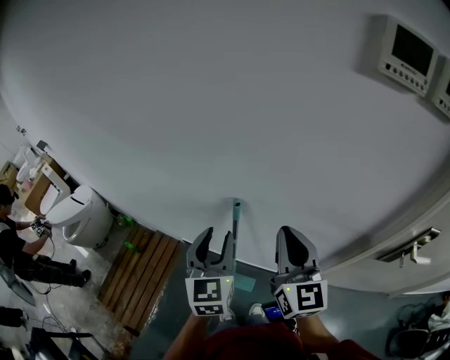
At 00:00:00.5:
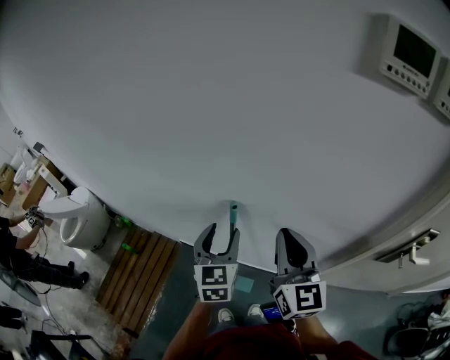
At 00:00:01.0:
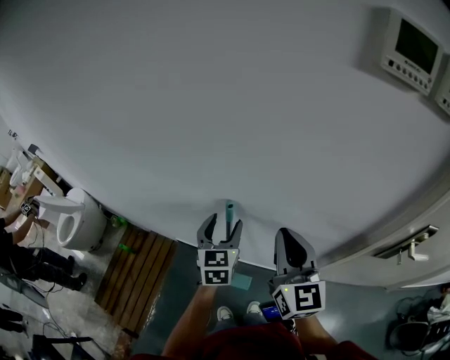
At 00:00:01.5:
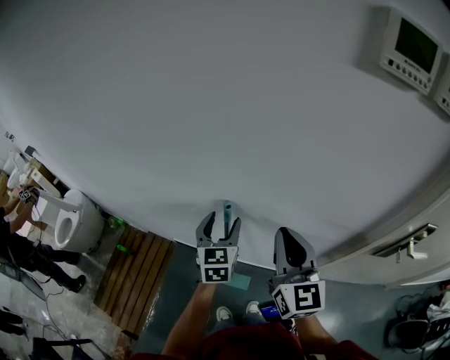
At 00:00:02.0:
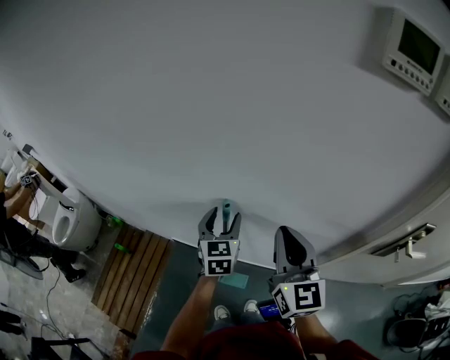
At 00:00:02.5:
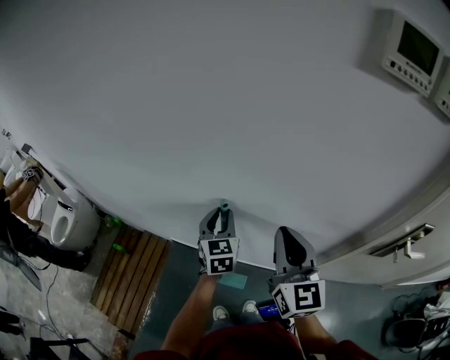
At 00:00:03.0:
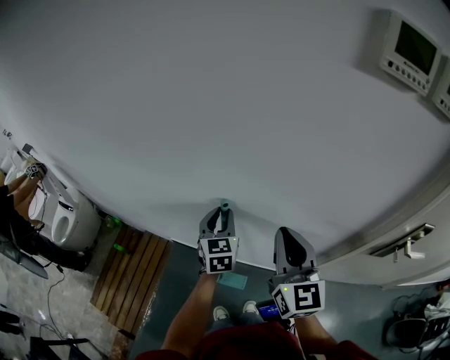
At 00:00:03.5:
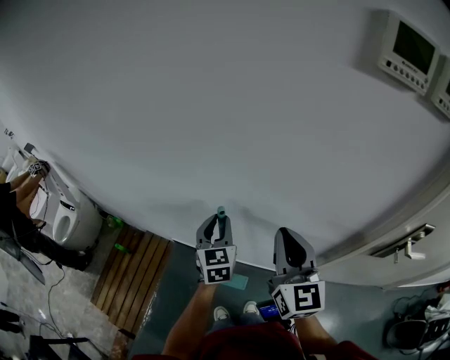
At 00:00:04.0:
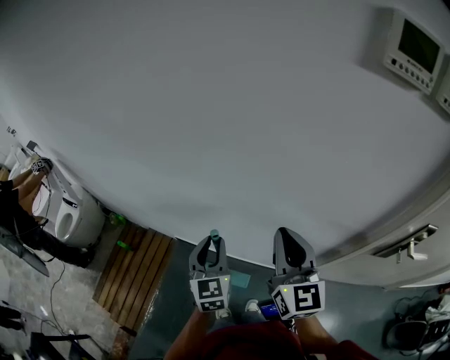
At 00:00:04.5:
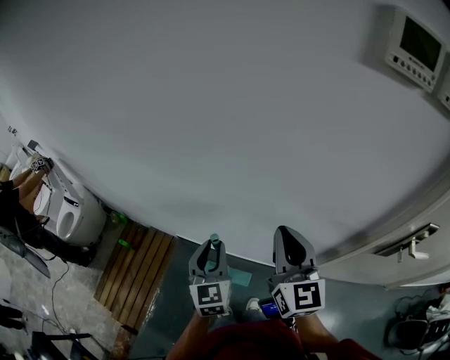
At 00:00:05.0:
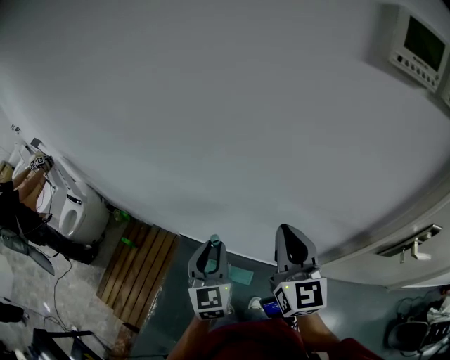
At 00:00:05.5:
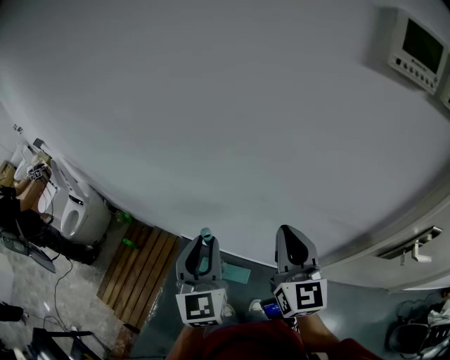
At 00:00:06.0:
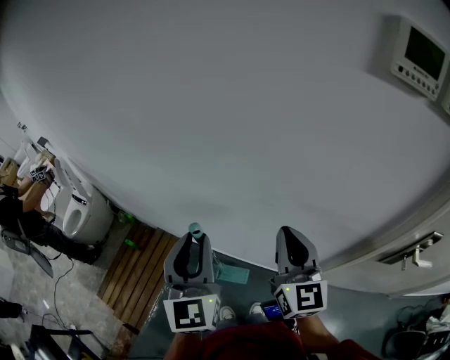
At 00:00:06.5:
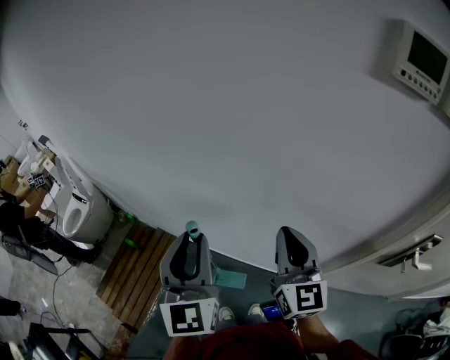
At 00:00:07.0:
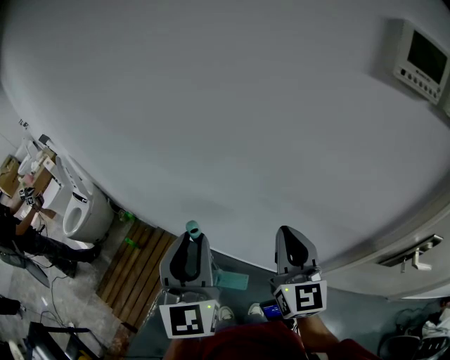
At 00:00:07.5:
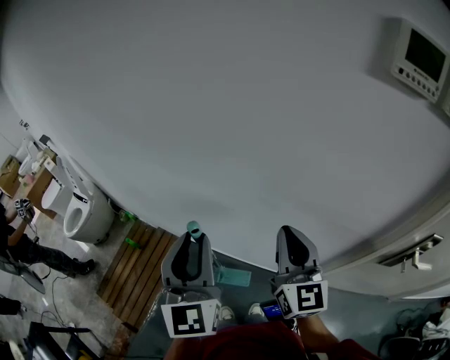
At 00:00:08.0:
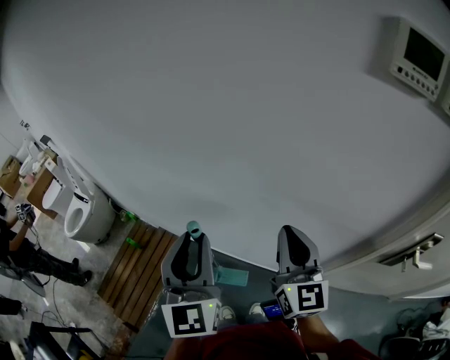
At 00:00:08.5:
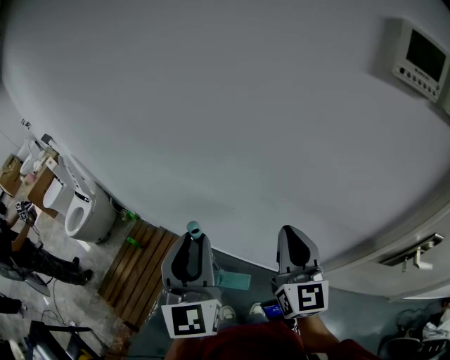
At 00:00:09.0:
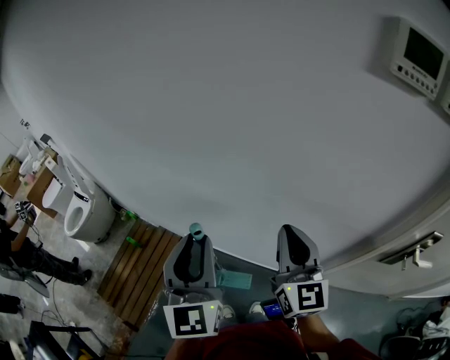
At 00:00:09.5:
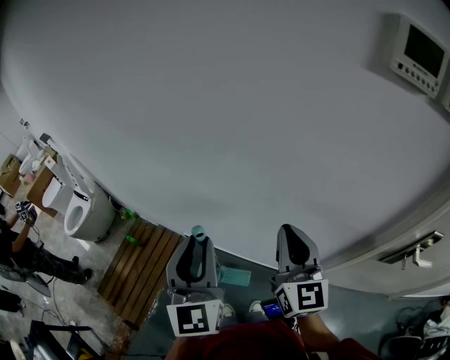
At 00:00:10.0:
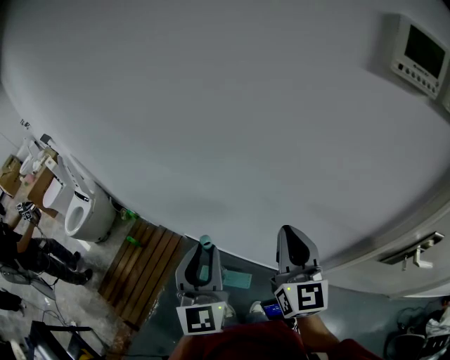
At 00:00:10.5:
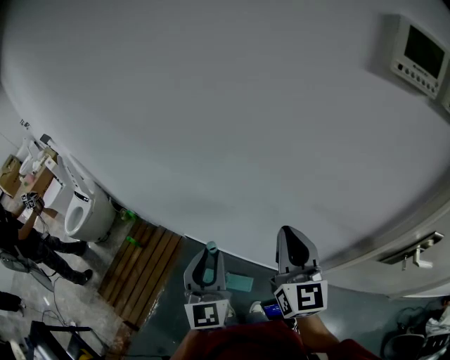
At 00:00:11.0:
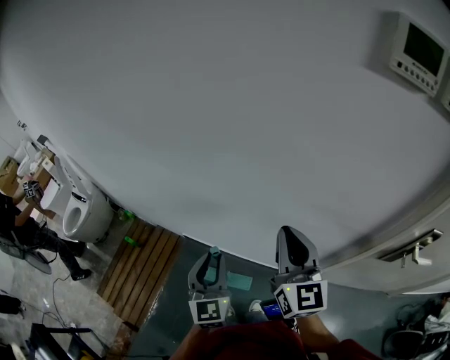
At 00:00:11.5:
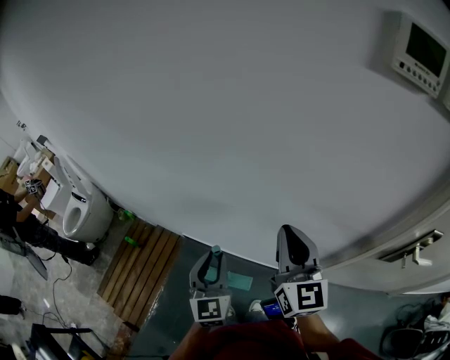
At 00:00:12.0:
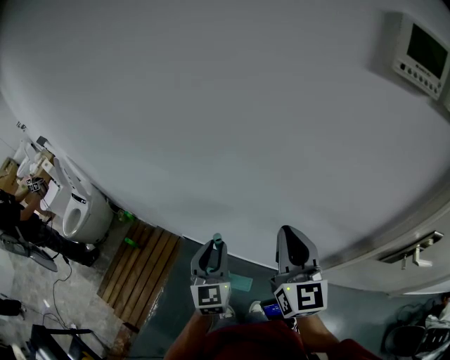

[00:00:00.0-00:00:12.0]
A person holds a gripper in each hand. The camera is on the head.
00:00:00.0 to 00:00:02.0: The left gripper moves forward and downward, some 15 cm, and opens.
00:00:02.0 to 00:00:04.0: The left gripper is displaced backward by approximately 10 cm, and closes up.
00:00:04.0 to 00:00:06.0: The left gripper shifts some 15 cm upward.
00:00:06.0 to 00:00:08.0: The grippers move only a little.
00:00:08.0 to 00:00:10.0: The left gripper heads downward, covering about 5 cm.
00:00:10.0 to 00:00:12.0: The left gripper travels downward and forward by roughly 15 cm.

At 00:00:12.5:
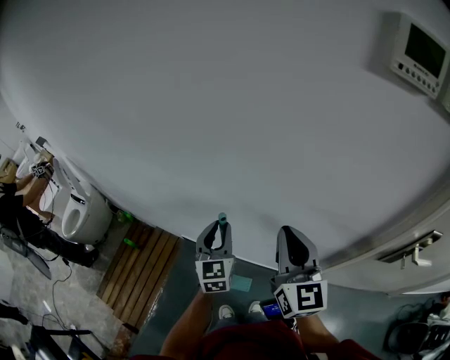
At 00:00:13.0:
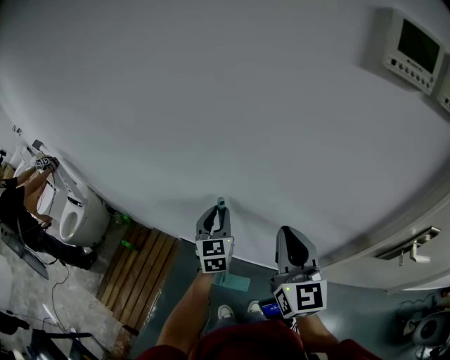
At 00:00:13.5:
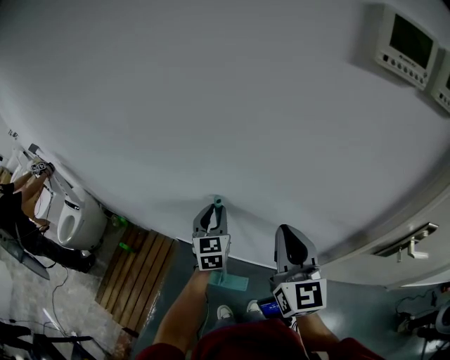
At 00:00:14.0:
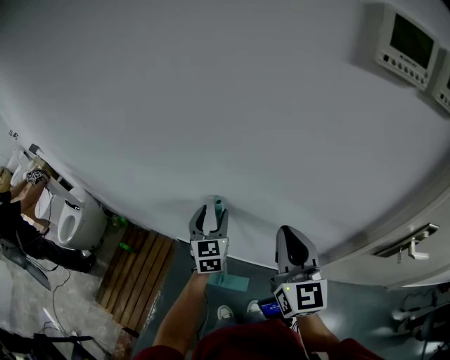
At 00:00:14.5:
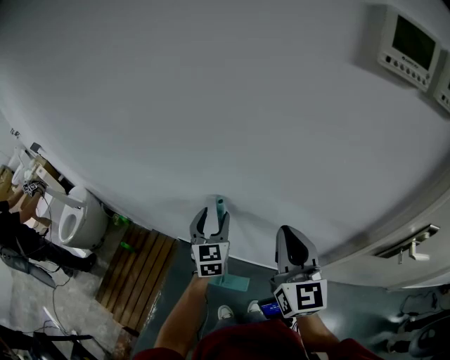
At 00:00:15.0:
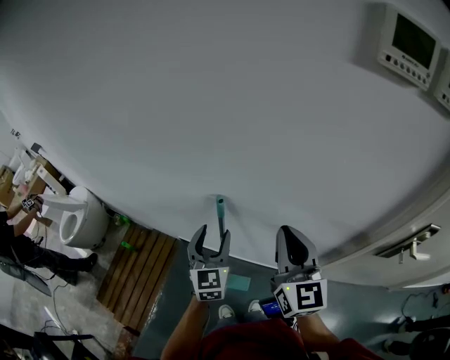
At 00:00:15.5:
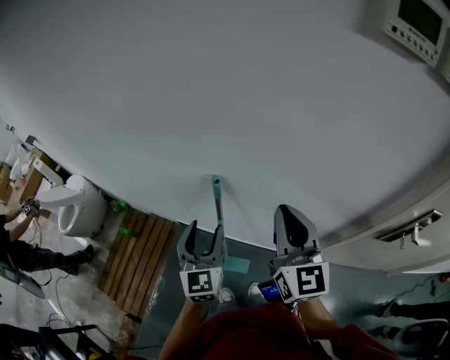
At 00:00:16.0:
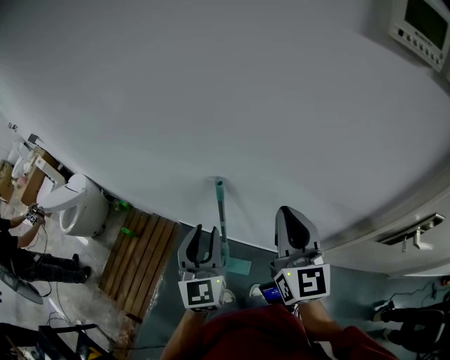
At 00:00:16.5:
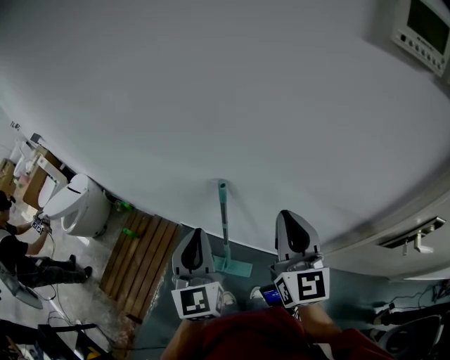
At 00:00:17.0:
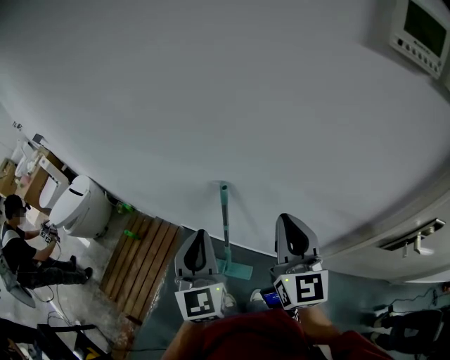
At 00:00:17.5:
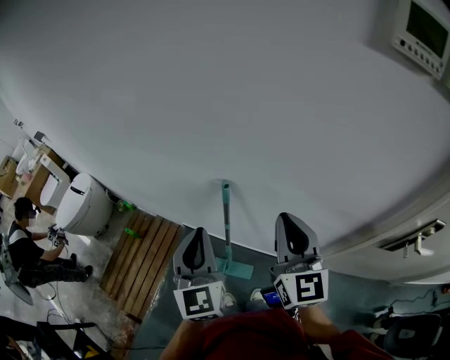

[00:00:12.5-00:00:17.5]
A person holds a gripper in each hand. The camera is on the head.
00:00:12.5 to 00:00:15.0: The left gripper goes forward and returns, about 5 cm each way, and opens its fingers.
00:00:15.0 to 00:00:17.5: The left gripper travels upward and backward by some 10 cm, and closes up.

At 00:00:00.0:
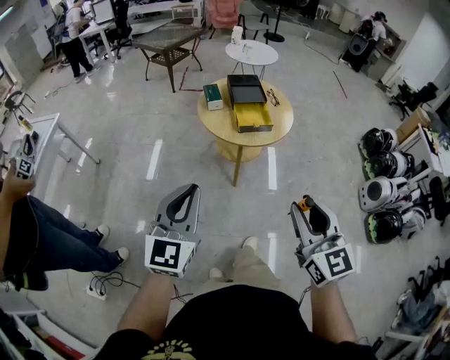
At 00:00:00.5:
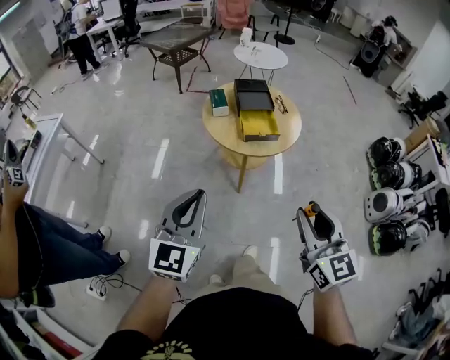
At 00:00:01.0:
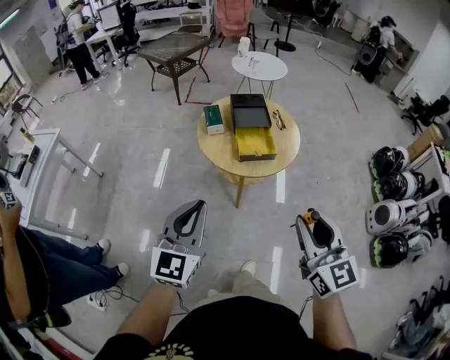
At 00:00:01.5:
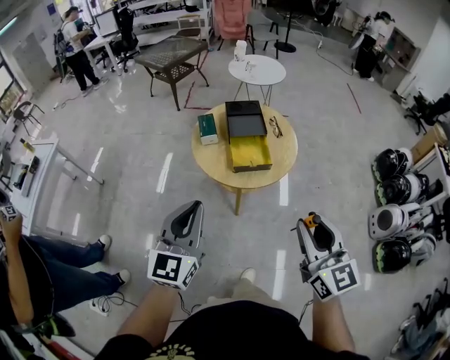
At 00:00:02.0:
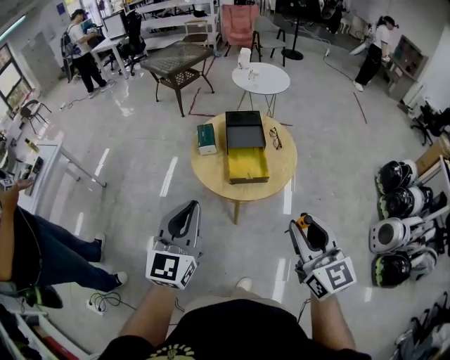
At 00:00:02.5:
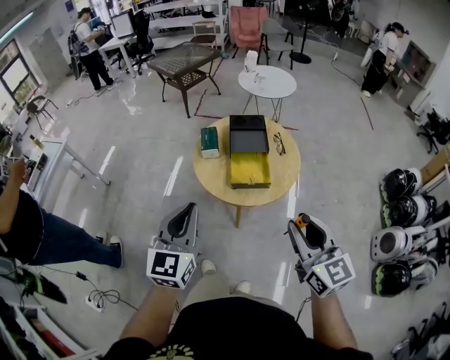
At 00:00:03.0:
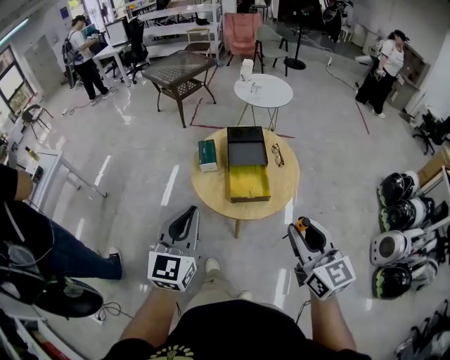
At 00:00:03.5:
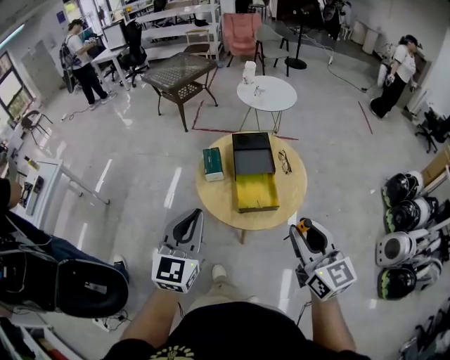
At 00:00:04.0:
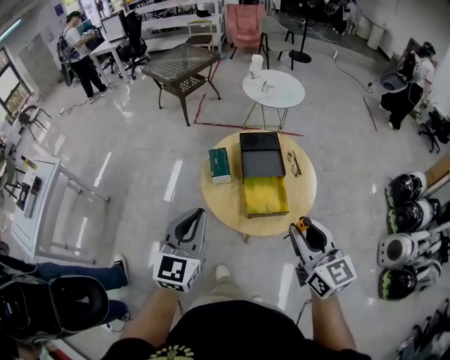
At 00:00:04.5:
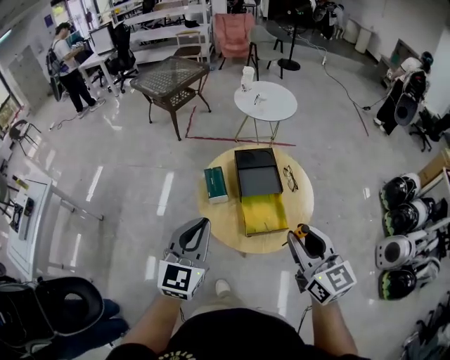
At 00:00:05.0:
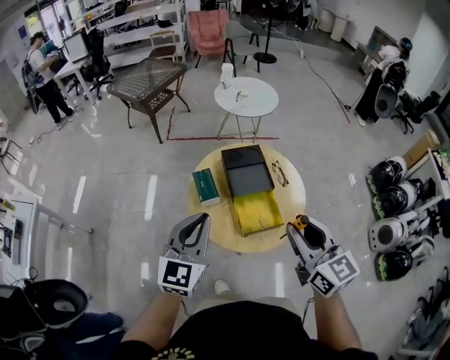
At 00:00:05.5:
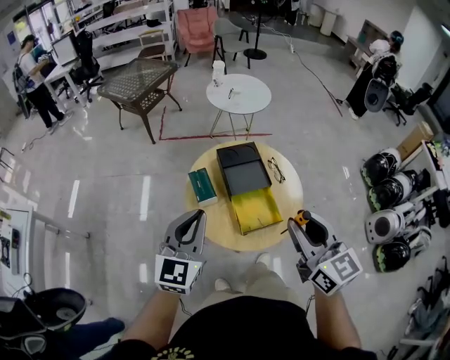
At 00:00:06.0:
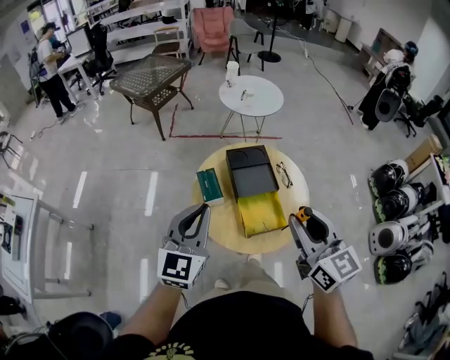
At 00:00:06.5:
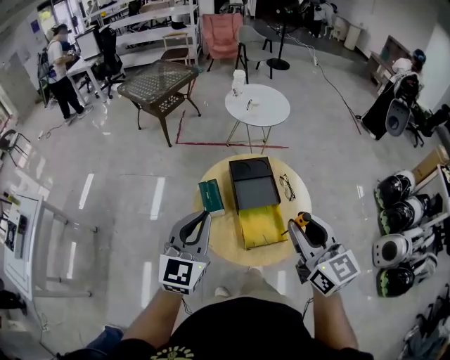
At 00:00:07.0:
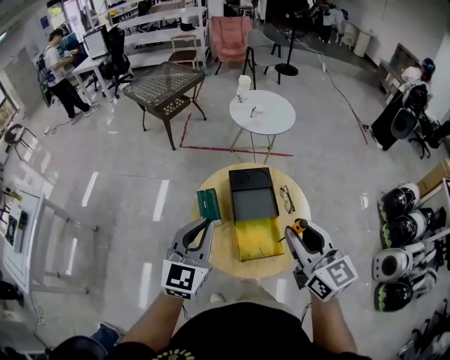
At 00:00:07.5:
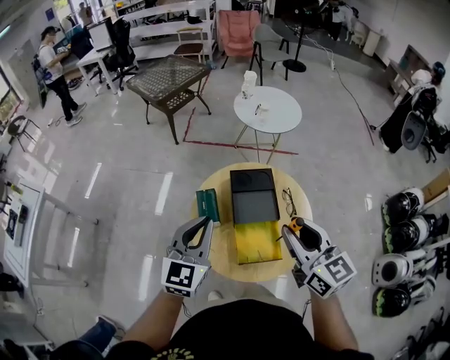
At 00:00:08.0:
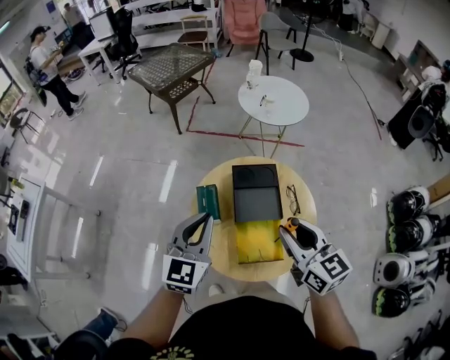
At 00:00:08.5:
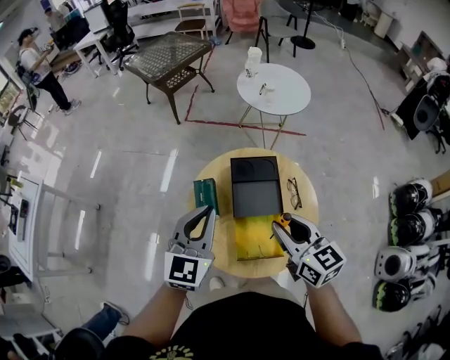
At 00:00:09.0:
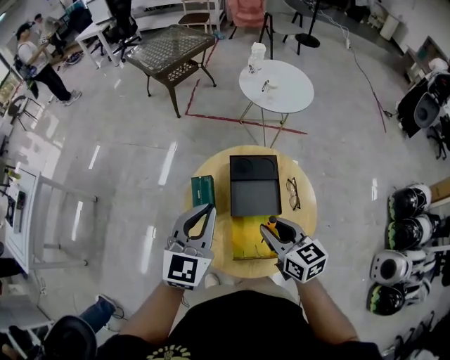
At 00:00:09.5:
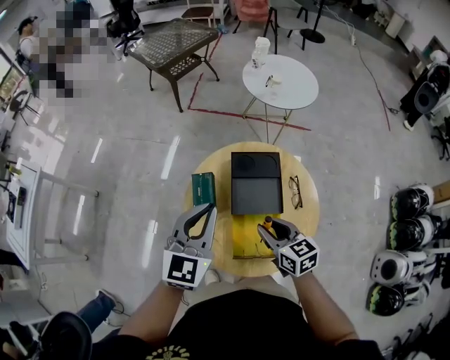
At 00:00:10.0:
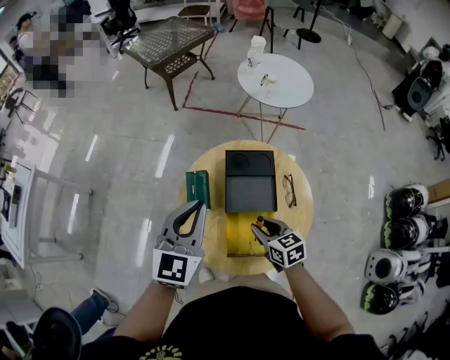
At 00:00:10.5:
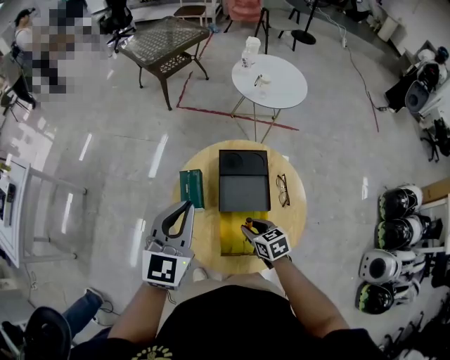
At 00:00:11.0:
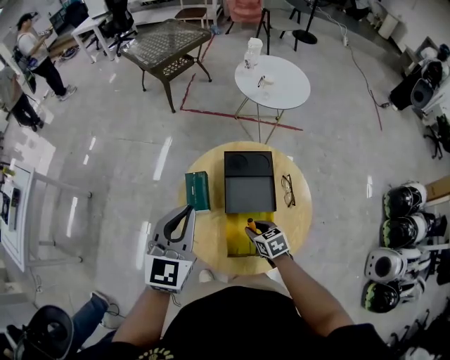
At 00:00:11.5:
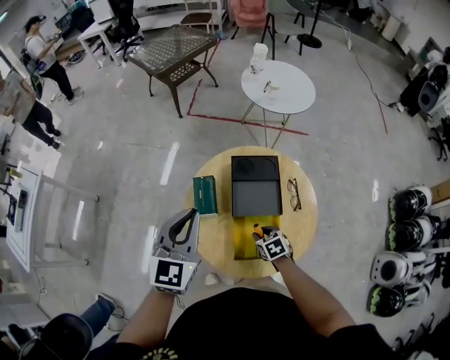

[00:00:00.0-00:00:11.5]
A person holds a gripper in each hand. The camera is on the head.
00:00:00.0 to 00:00:02.0: The grippers both shift forward and to the right by approximately 25 cm.
00:00:02.0 to 00:00:04.0: Both grippers travel together forward, about 20 cm.
00:00:04.0 to 00:00:06.0: The left gripper shifts roughly 15 cm forward, while the right gripper goes roughly 10 cm forward and to the left.
00:00:06.0 to 00:00:07.5: The two grippers go some 10 cm forward and to the right.
00:00:07.5 to 00:00:09.5: The right gripper heads downward, covering some 20 cm, and turns by approximately 30 degrees. Meanwhile the left gripper goes about 5 cm forward.
00:00:09.5 to 00:00:11.5: The right gripper heads downward, covering roughly 20 cm, and turns by approximately 30 degrees.
